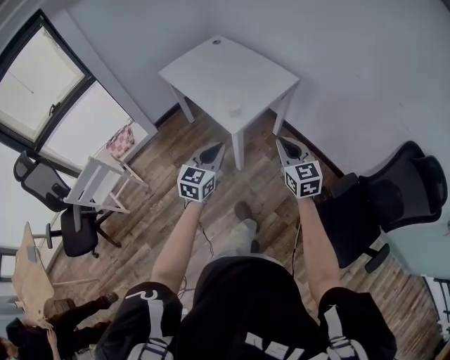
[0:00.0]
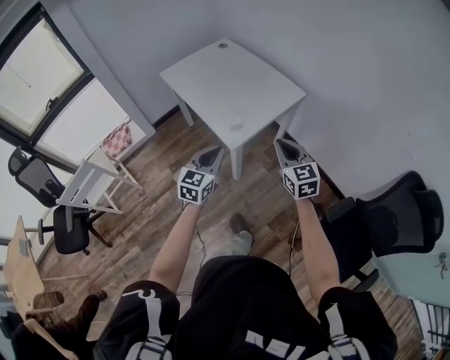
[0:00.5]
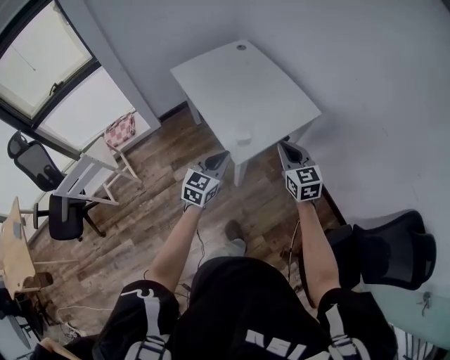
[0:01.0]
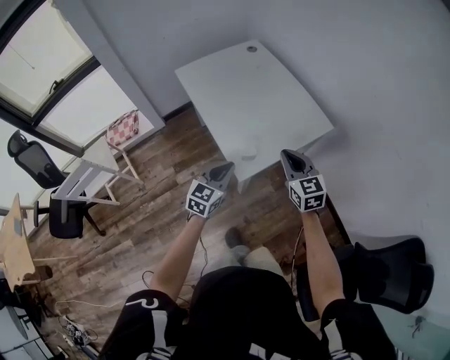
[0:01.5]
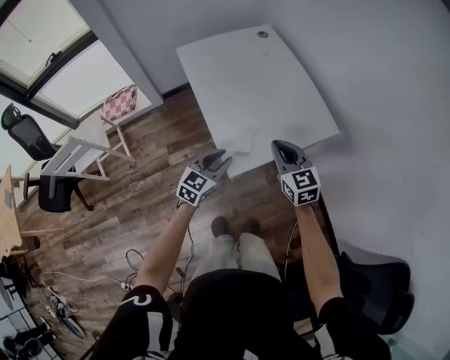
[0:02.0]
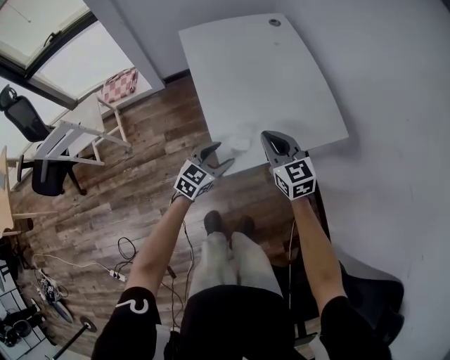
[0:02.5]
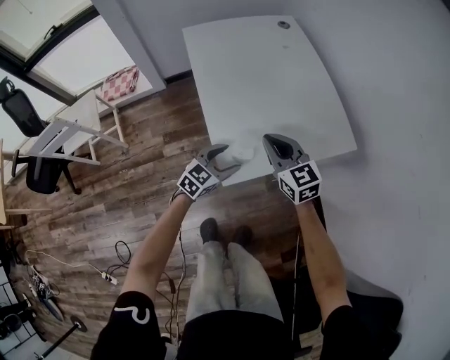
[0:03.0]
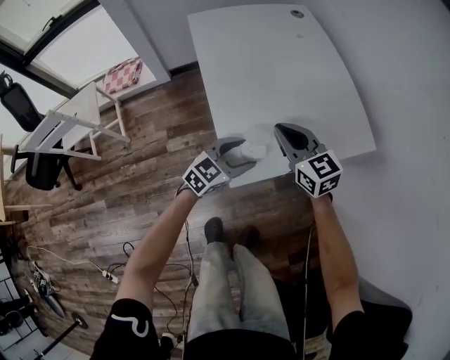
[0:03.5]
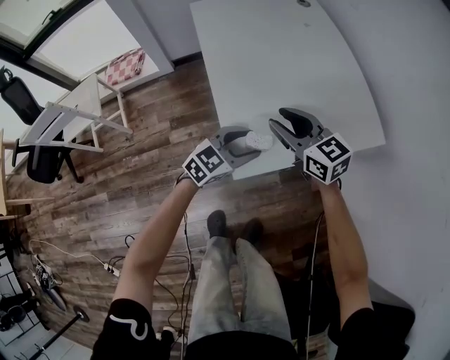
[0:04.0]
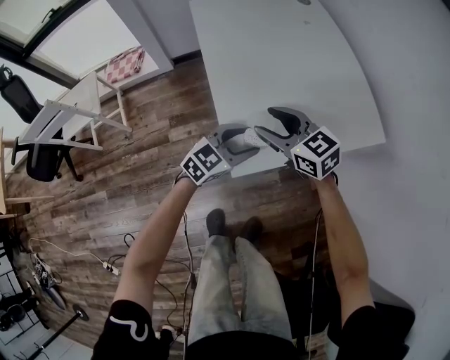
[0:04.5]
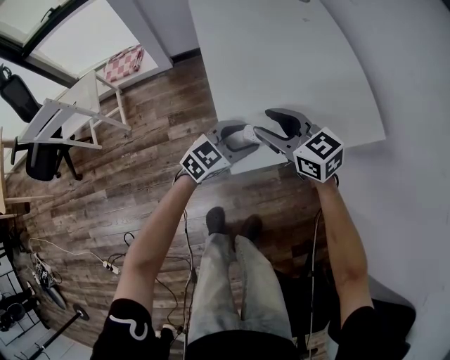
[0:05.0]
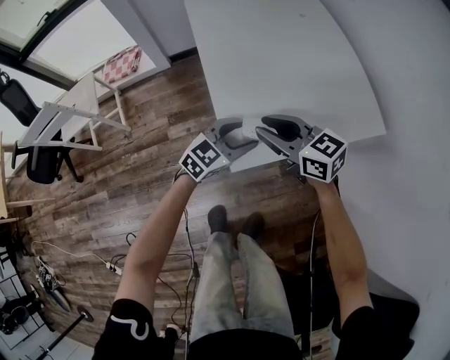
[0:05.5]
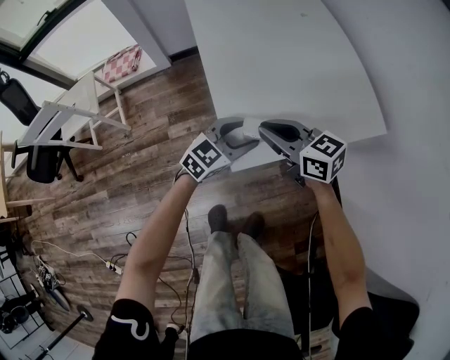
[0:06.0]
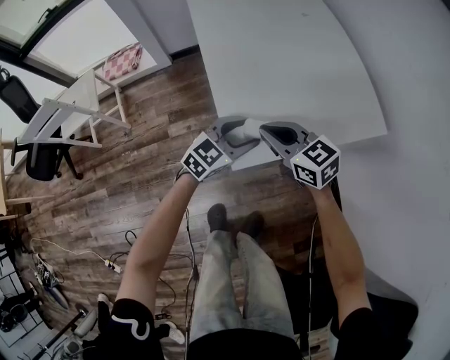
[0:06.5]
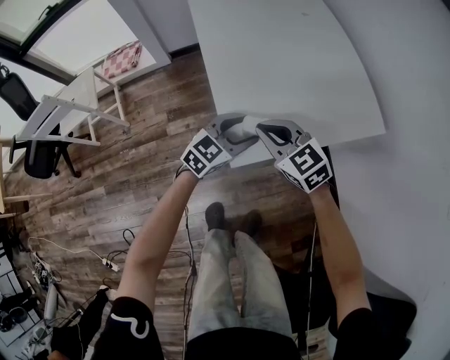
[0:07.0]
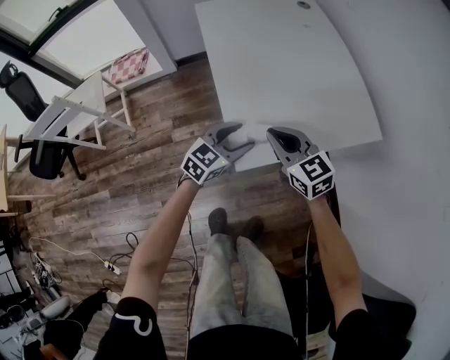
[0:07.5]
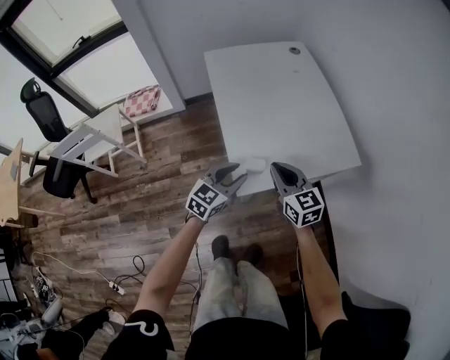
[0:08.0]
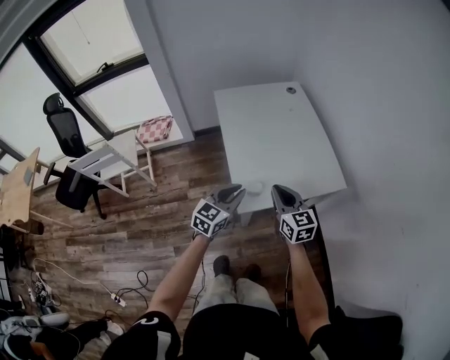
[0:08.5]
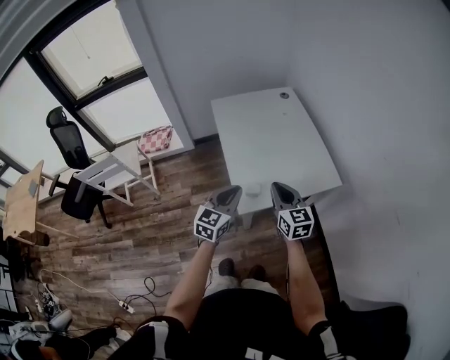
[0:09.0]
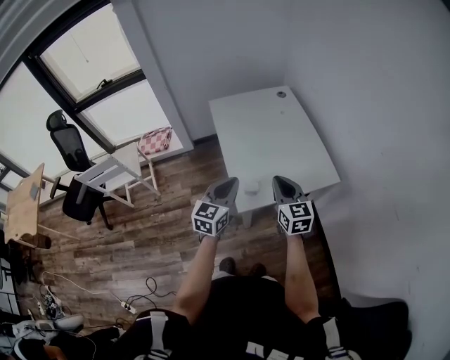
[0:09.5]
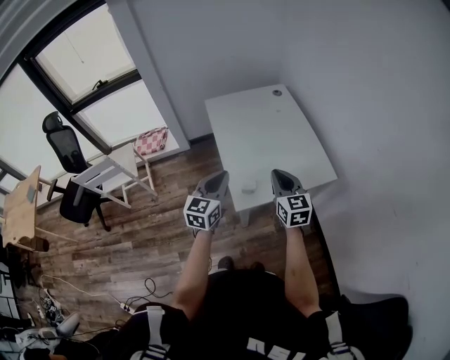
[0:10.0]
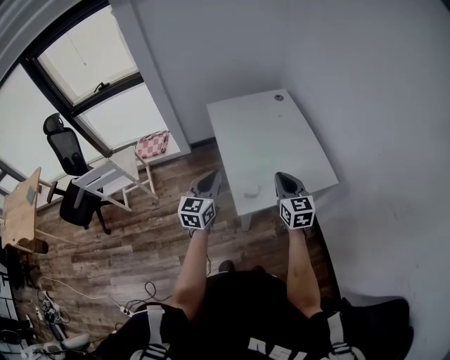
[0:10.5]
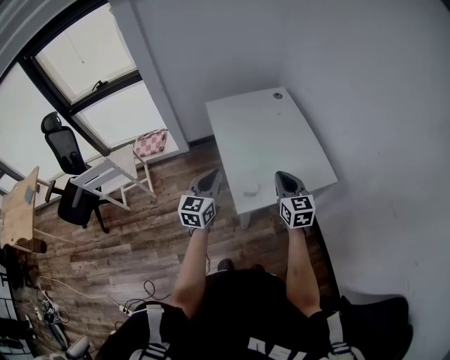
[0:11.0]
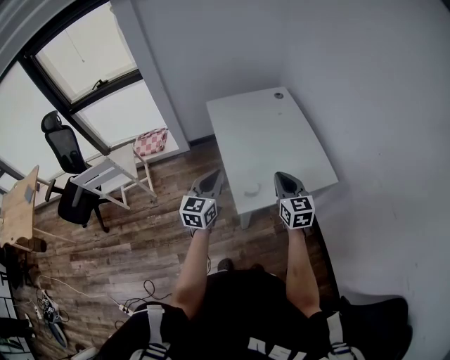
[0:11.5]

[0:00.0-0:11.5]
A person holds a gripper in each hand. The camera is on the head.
0:00.0 to 0:02.0: The right gripper shifts some 35 cm forward, and changes its angle by approximately 30 degrees, while the left gripper heads forward and downward, covering some 30 cm.
0:02.0 to 0:04.0: The left gripper shifts some 15 cm downward, and opens. The right gripper heads downward and forward, covering some 20 cm, swivels roughly 30 degrees, and opens.
0:04.0 to 0:06.0: The right gripper changes place by about 5 cm, and closes up.
0:06.0 to 0:07.5: The right gripper turns by roughly 20 degrees.
0:07.5 to 0:09.5: Both grippers travel together upward, roughly 30 cm. The right gripper changes its angle by approximately 20 degrees; the left gripper swivels some 30 degrees, and closes its fingers.
0:09.5 to 0:11.5: The left gripper shifts some 5 cm to the left.

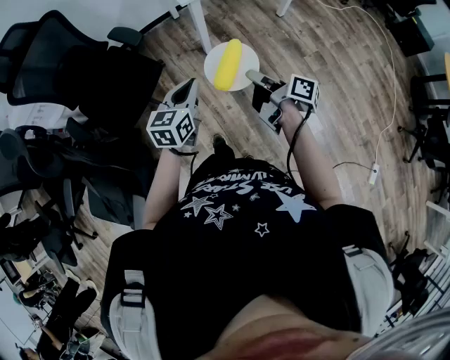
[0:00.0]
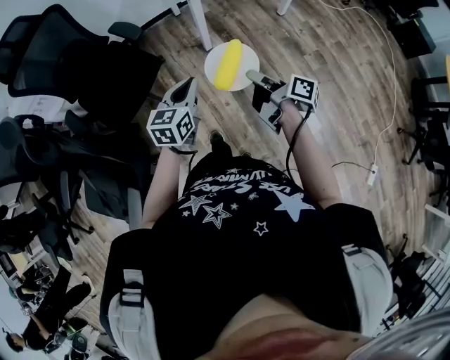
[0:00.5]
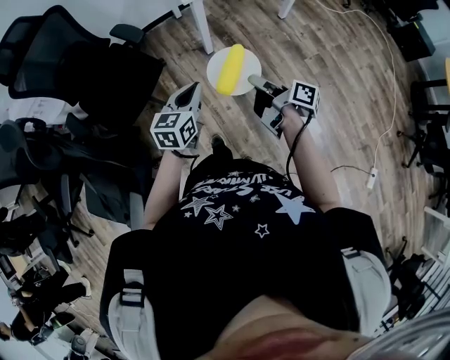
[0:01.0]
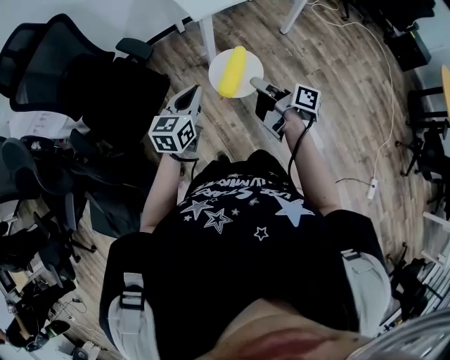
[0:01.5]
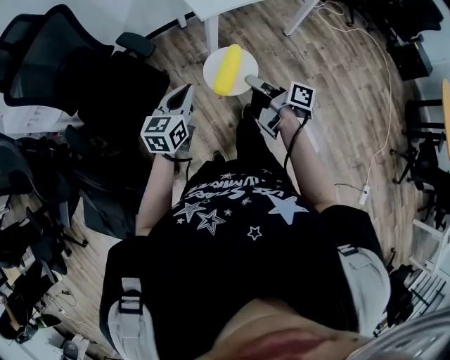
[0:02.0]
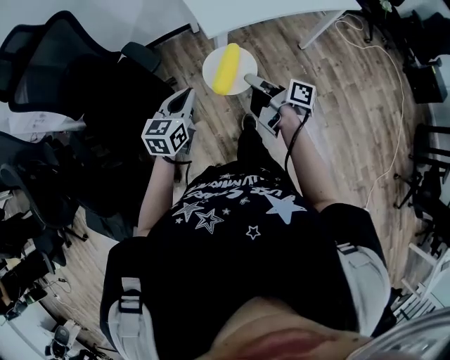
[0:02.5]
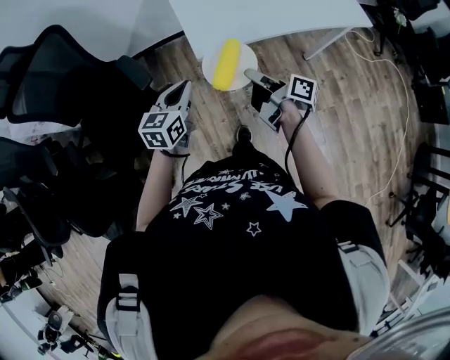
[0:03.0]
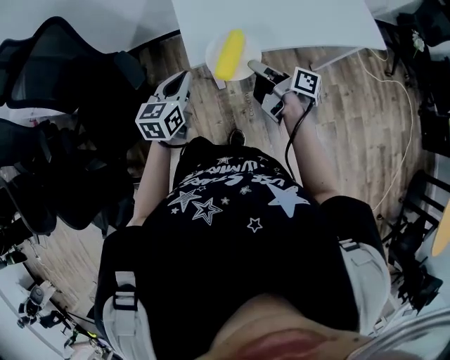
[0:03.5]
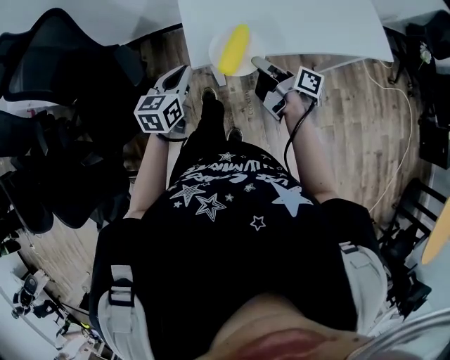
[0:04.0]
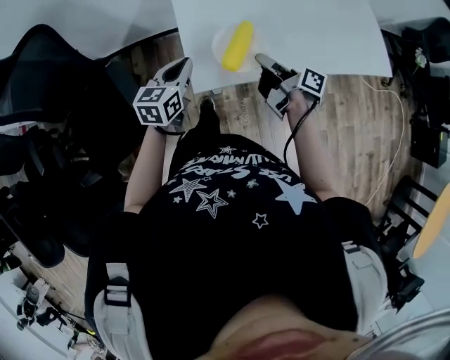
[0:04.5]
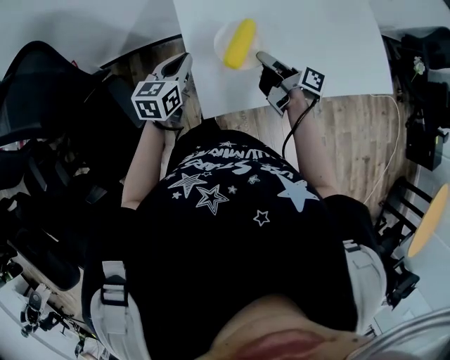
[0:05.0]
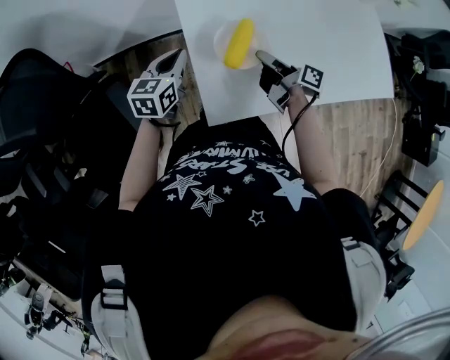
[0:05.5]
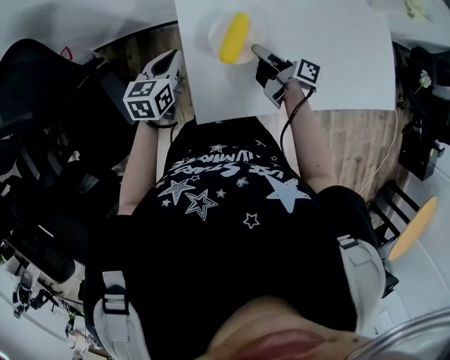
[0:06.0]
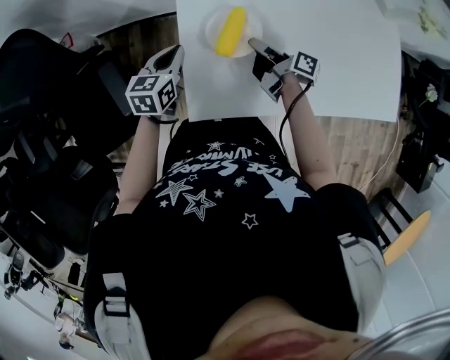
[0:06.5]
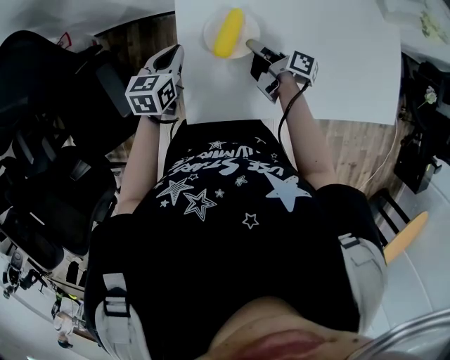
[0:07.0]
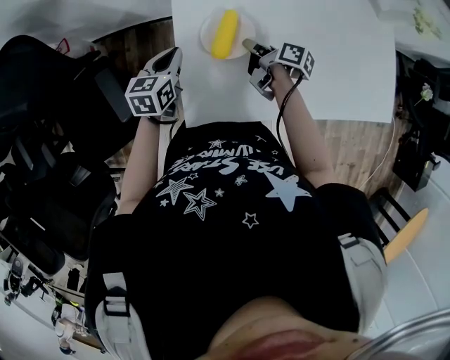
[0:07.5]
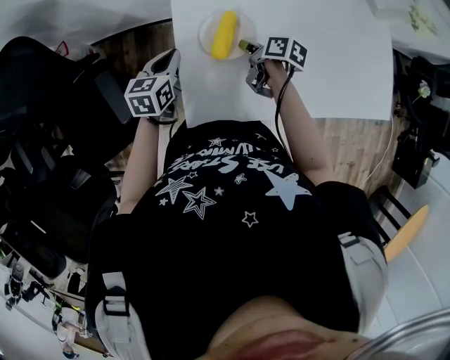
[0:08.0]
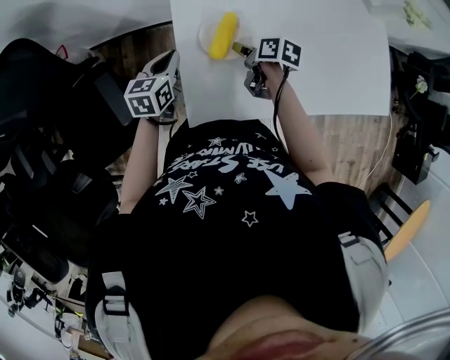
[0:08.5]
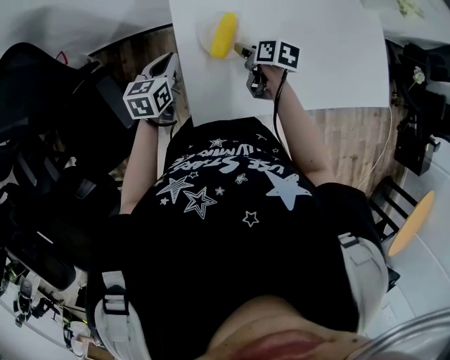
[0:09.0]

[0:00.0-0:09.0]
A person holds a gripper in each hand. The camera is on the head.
0:00.0 to 0:02.0: The left gripper ends up roughly 10 cm from where it was.
0:02.0 to 0:04.5: The left gripper moves roughly 50 cm.
0:04.5 to 0:07.0: The left gripper ends up about 20 cm from where it was.

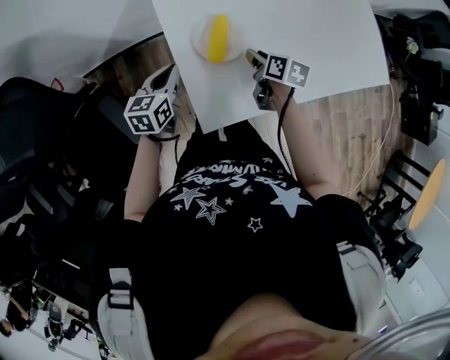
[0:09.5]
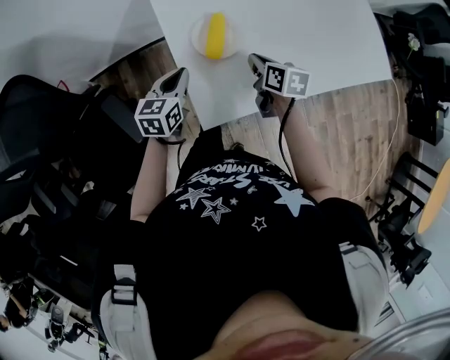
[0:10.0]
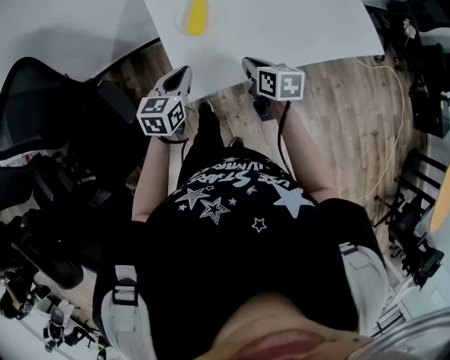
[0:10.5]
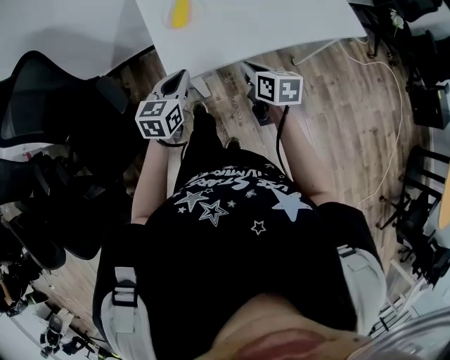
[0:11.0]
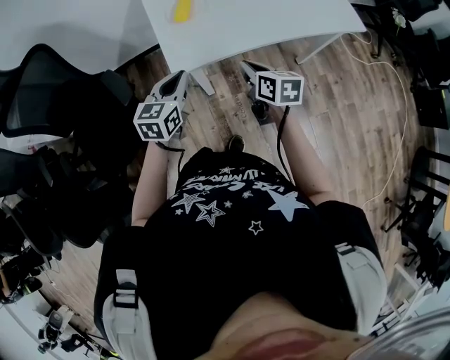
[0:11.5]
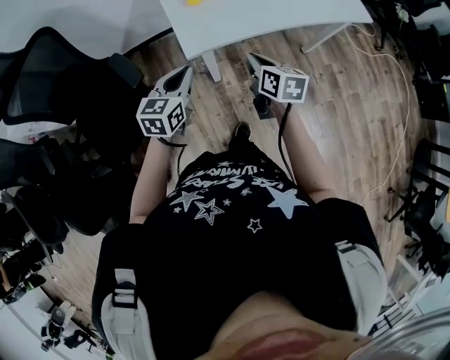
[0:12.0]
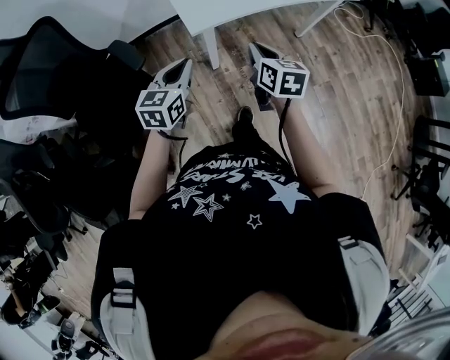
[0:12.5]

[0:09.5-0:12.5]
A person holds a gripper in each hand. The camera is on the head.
0:09.5 to 0:11.0: The left gripper shifts by some 30 cm.
0:11.0 to 0:12.5: The left gripper moves about 20 cm.

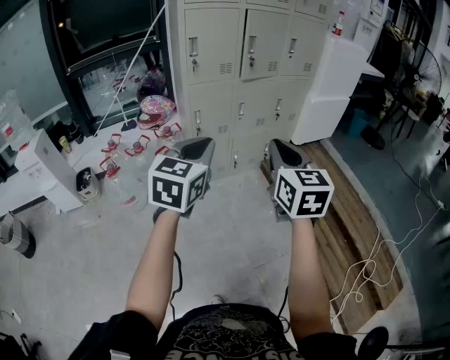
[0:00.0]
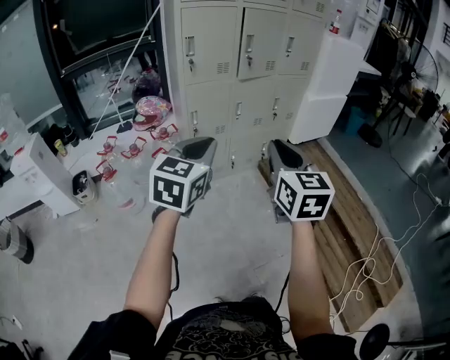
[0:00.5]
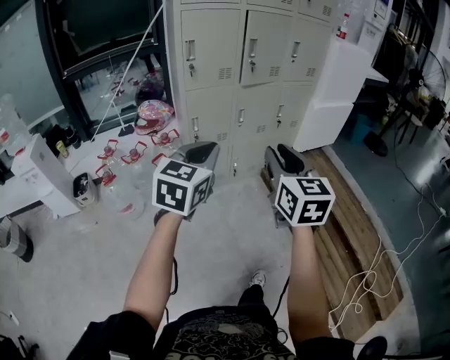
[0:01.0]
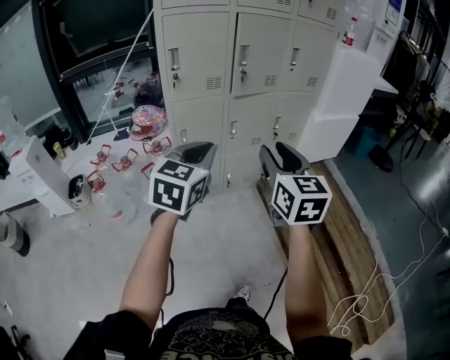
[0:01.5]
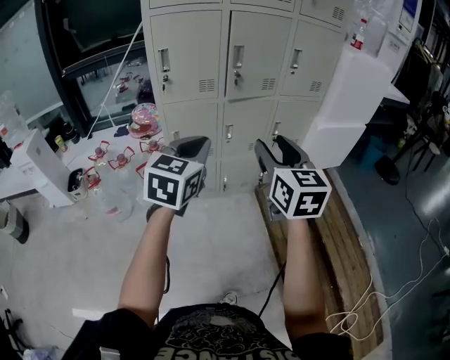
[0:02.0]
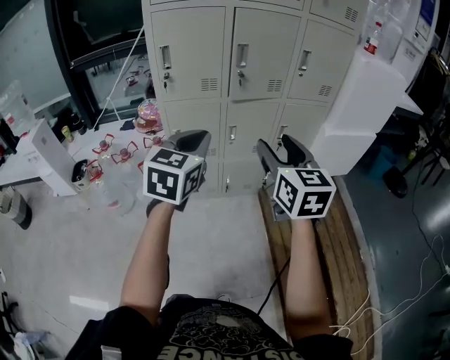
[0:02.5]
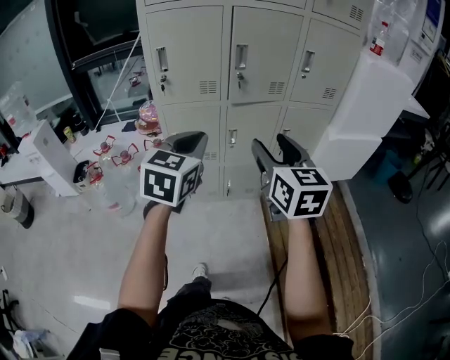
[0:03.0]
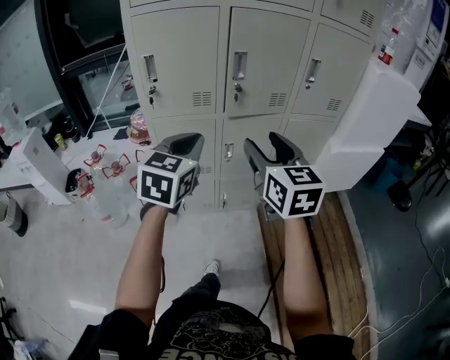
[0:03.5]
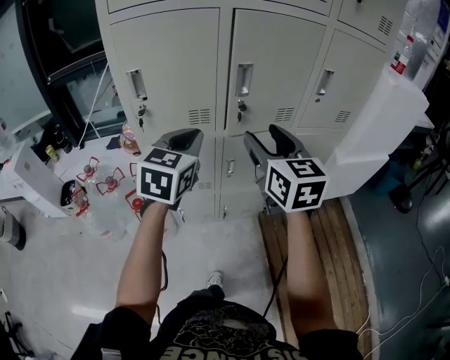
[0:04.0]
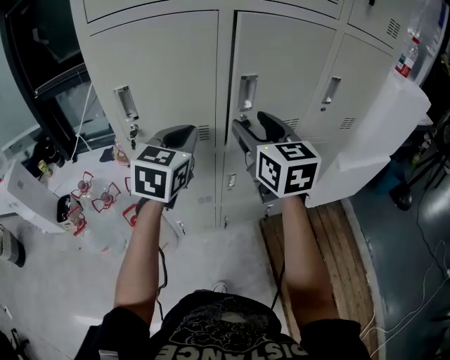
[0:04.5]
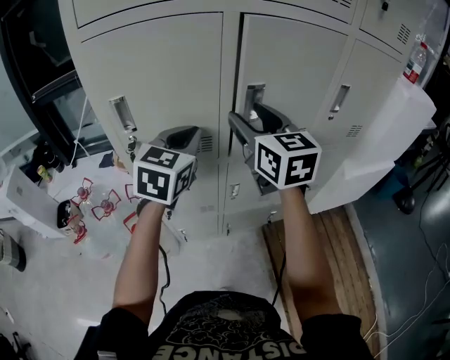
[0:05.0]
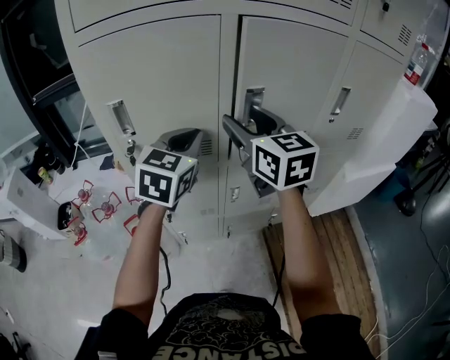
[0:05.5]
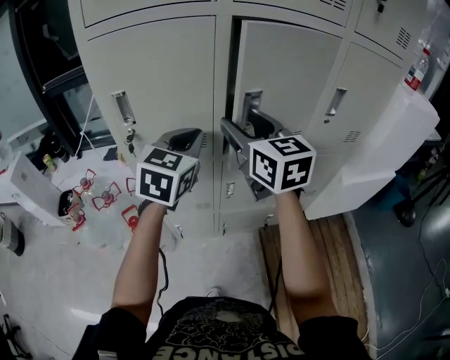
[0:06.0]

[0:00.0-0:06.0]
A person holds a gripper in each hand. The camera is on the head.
0:00.0 to 0:02.0: The two grippers go some 25 cm forward and to the right. The right gripper opens up.
0:02.0 to 0:04.0: The grippers both shift forward by some 30 cm.
0:04.0 to 0:06.0: Both grippers move forward, approximately 10 cm.
